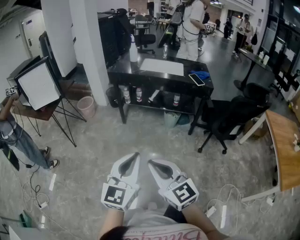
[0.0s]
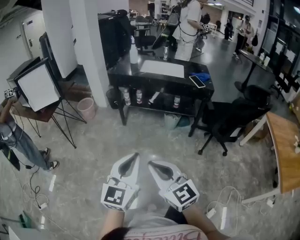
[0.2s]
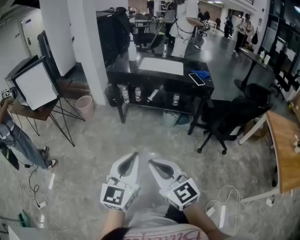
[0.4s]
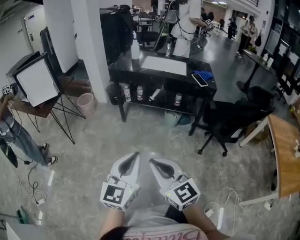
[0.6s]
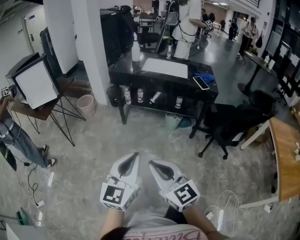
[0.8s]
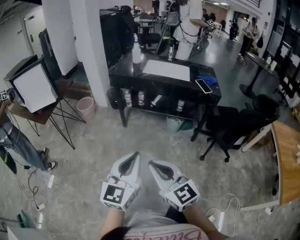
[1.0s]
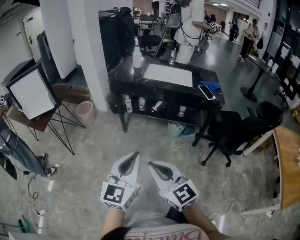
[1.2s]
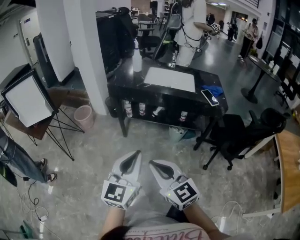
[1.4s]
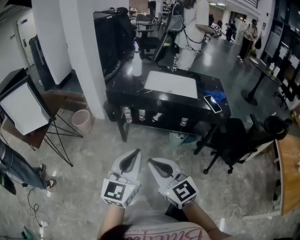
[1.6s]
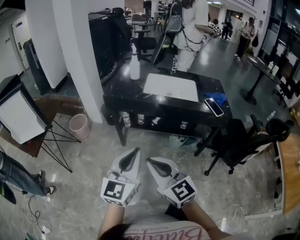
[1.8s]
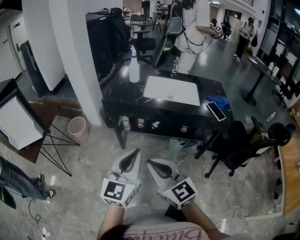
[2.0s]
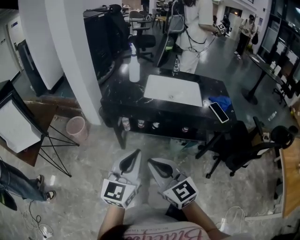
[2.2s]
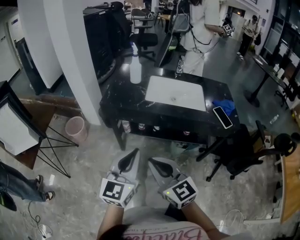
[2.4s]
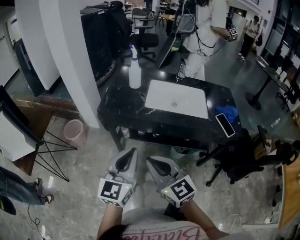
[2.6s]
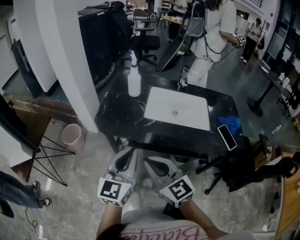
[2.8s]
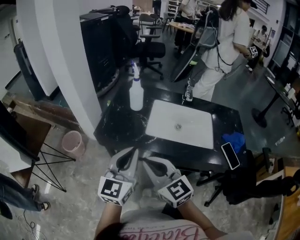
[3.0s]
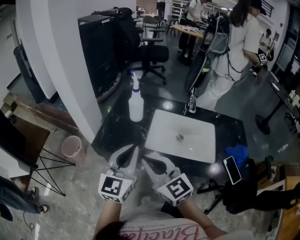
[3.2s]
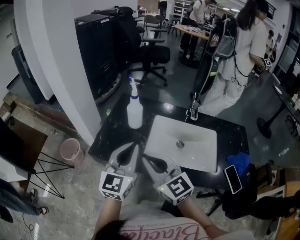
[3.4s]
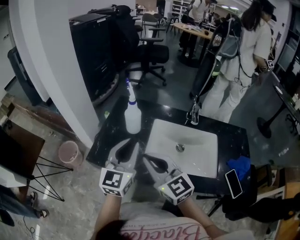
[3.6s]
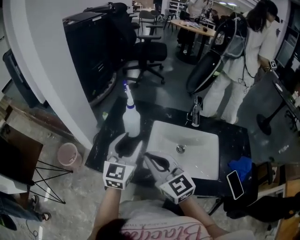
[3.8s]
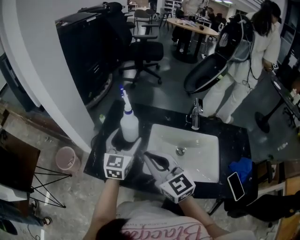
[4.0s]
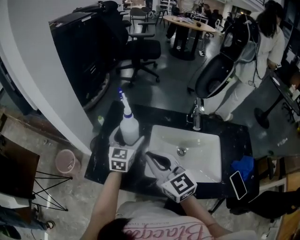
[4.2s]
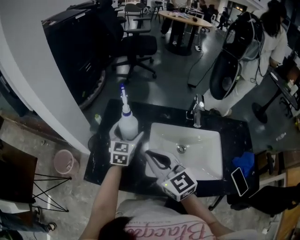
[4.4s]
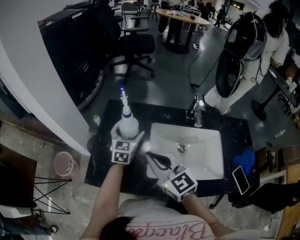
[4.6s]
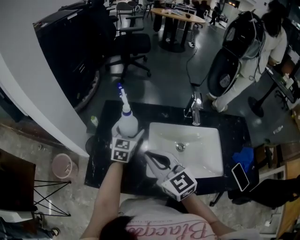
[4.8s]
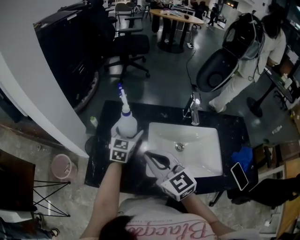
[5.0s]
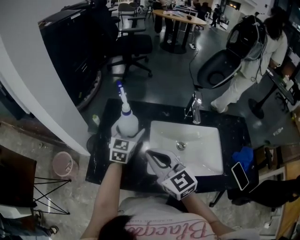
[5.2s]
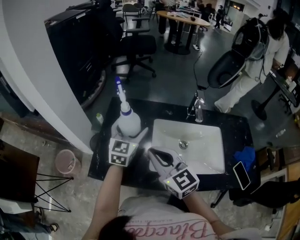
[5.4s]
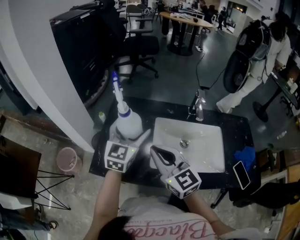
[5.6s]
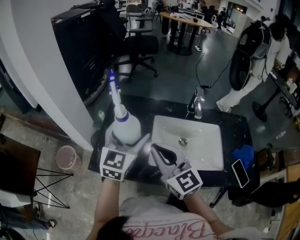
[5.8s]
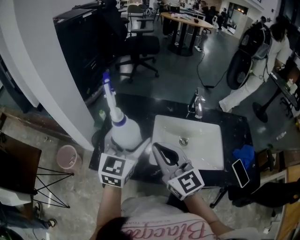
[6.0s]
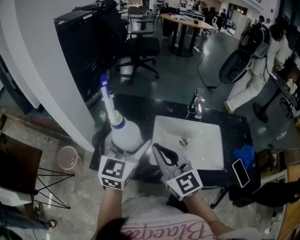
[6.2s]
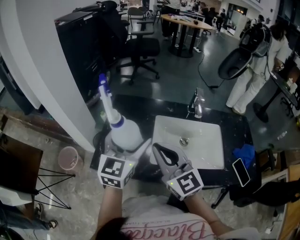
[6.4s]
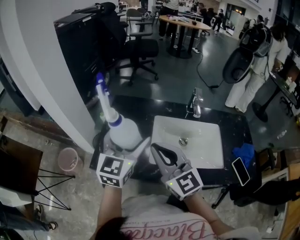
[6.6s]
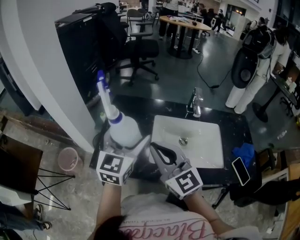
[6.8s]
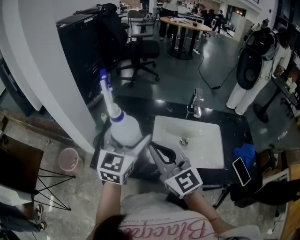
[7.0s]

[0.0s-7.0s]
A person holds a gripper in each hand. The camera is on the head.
0.0s to 1.4s: Both grippers move forward, about 20 cm.
1.4s to 2.8s: Both grippers travel together forward, about 35 cm.
2.8s to 4.2s: The grippers both shift forward by some 35 cm. The left gripper opens its fingers.
4.2s to 5.6s: The left gripper travels upward by roughly 10 cm.
5.6s to 7.0s: The left gripper shifts about 5 cm backward; the right gripper ends up roughly 5 cm from where it was.

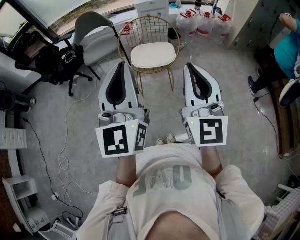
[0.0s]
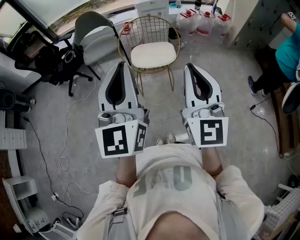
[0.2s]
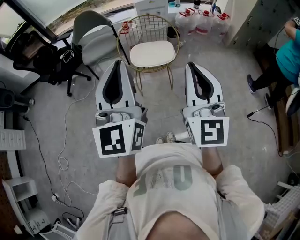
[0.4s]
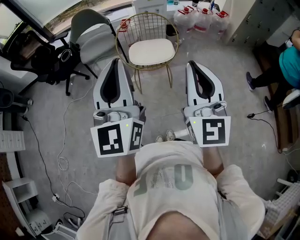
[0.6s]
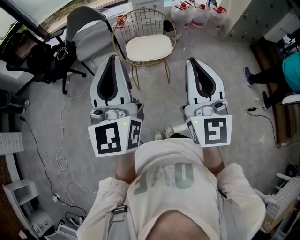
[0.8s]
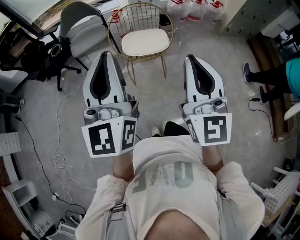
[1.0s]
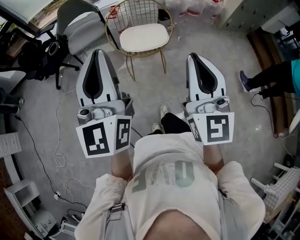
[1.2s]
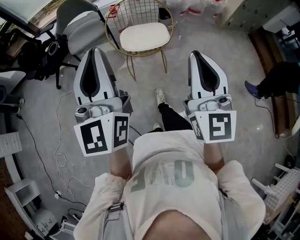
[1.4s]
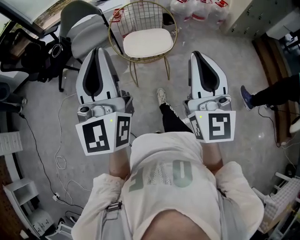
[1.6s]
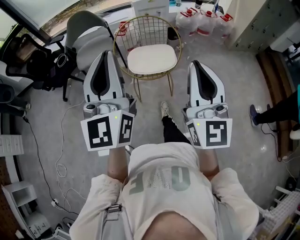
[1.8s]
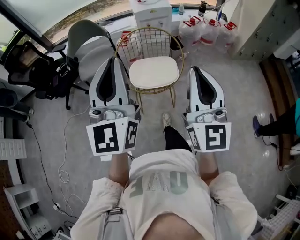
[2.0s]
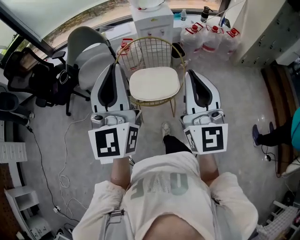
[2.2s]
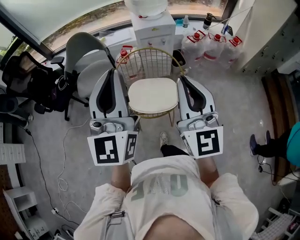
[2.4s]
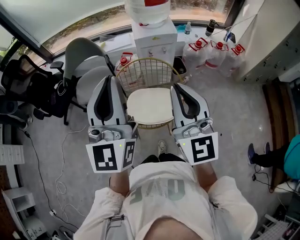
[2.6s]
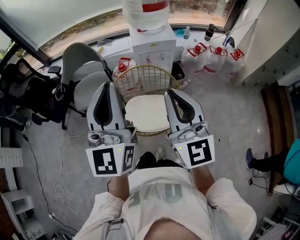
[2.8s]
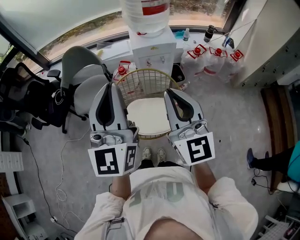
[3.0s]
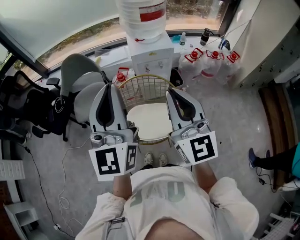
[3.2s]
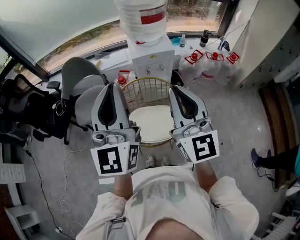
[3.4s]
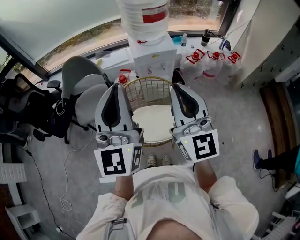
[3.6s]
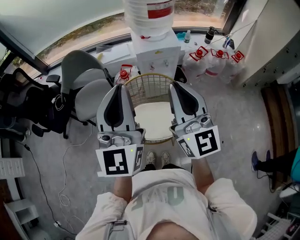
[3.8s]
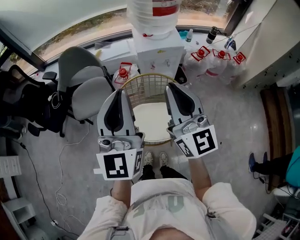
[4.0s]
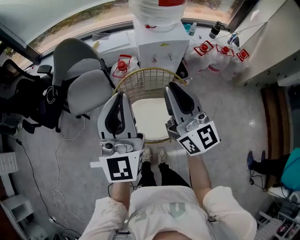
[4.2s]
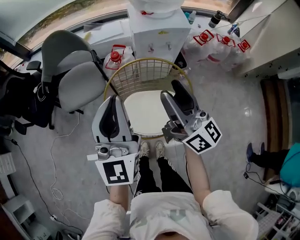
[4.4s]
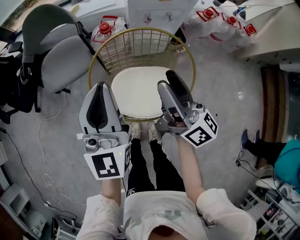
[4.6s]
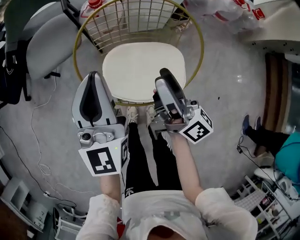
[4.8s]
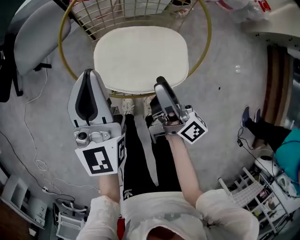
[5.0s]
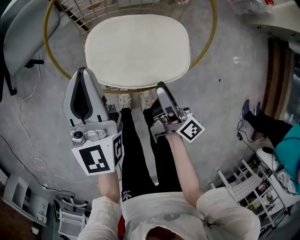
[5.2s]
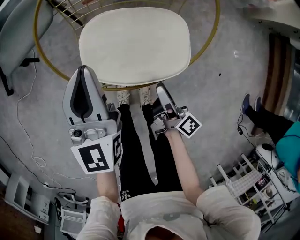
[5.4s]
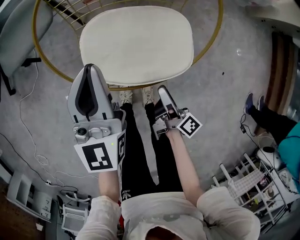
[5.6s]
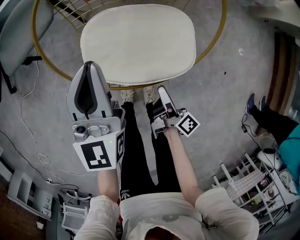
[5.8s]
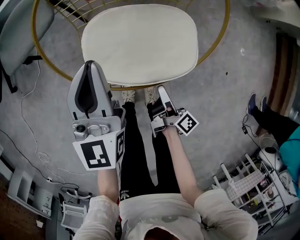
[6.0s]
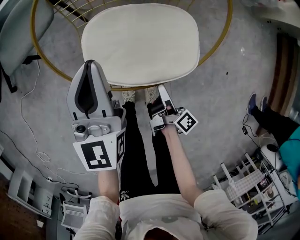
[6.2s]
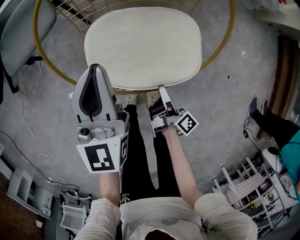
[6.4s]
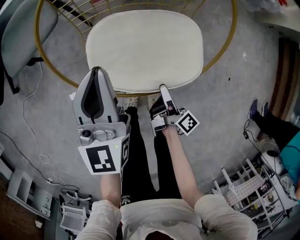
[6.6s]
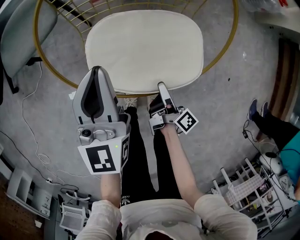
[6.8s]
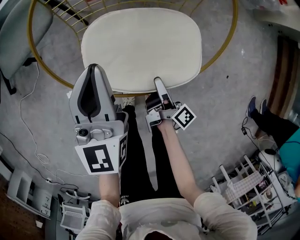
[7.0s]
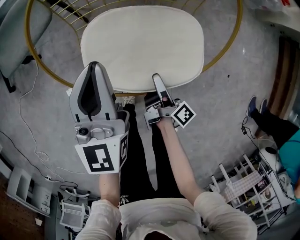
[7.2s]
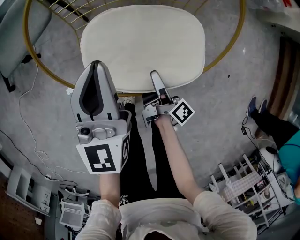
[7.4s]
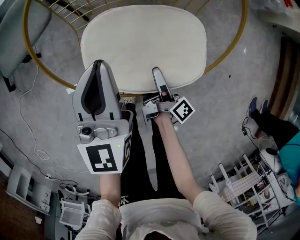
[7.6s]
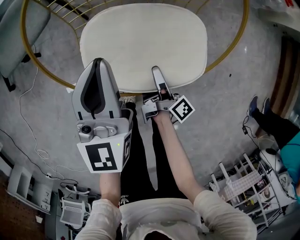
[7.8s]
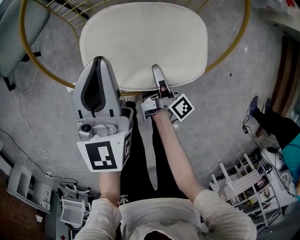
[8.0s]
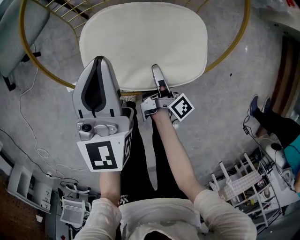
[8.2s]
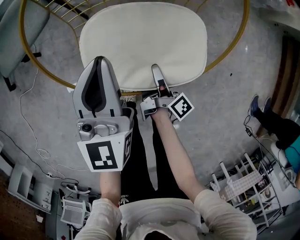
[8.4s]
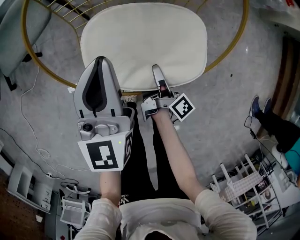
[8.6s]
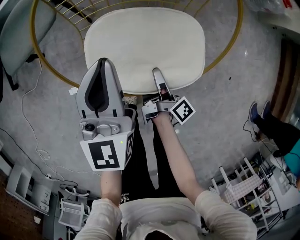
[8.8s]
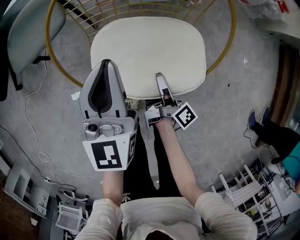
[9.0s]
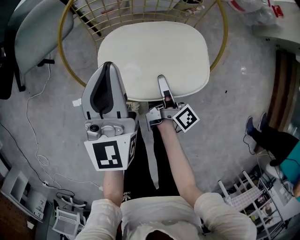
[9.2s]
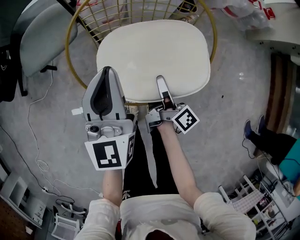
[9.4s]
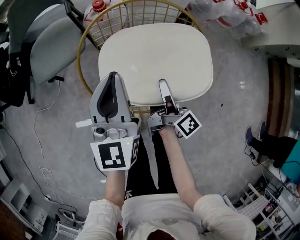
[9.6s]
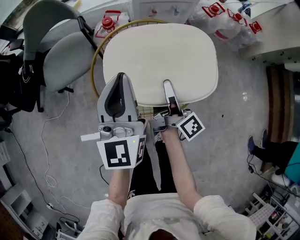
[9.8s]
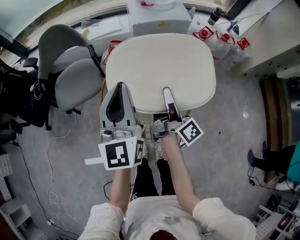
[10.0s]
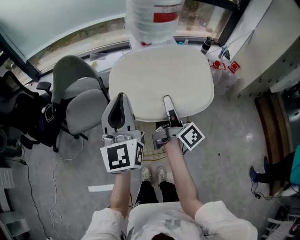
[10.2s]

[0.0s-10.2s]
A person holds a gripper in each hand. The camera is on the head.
0.0s to 1.4s: The left gripper shifts some 5 cm to the left.
1.4s to 3.0s: Both grippers are carried forward, approximately 40 cm.
3.0s to 4.4s: Both grippers move downward and forward, roughly 20 cm. The right gripper swivels approximately 40 degrees, and opens.
4.4s to 5.8s: Both grippers move downward, approximately 40 cm. The left gripper swivels approximately 20 degrees, while the right gripper rolls clockwise, seen from behind, by roughly 50 degrees.
5.8s to 7.2s: The right gripper moves forward, approximately 5 cm.
7.2s to 8.8s: The right gripper closes.
8.8s to 10.2s: The two grippers go approximately 40 cm upward. The right gripper points its fingers some 30 degrees further upward, while the left gripper rotates some 20 degrees.

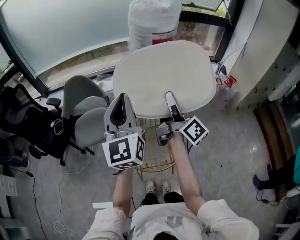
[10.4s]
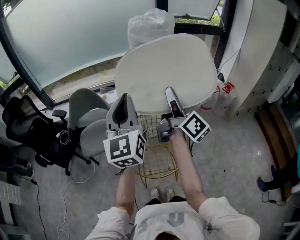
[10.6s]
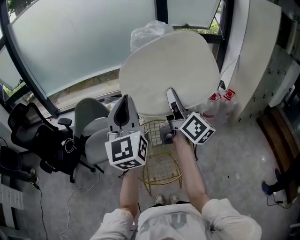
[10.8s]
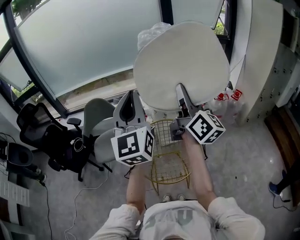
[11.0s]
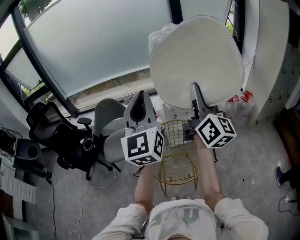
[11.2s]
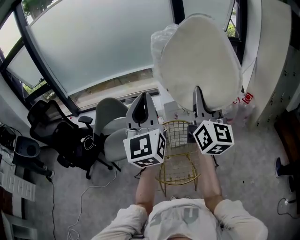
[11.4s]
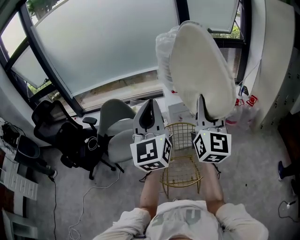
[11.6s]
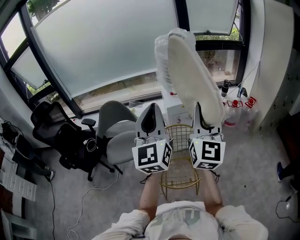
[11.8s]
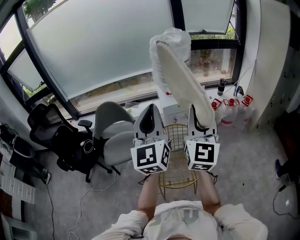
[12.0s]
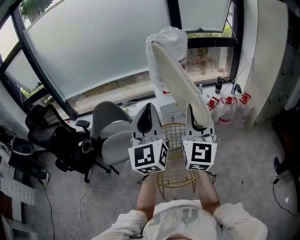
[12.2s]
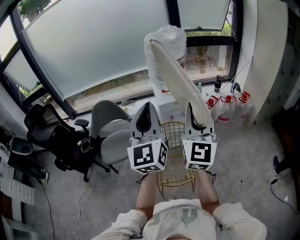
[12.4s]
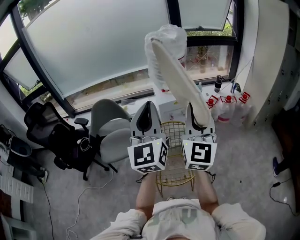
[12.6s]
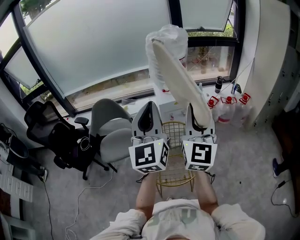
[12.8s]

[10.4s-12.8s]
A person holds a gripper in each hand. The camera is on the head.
10.4s to 11.6s: The right gripper heads upward and backward, covering approximately 20 cm, and rolls counterclockwise, seen from behind, by about 60 degrees, while the left gripper moves upward and backward, approximately 10 cm.
11.6s to 12.8s: The grippers stay close to where they were, moving slightly.

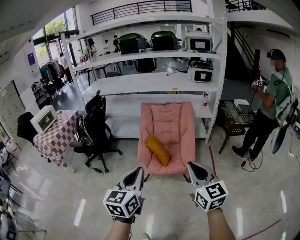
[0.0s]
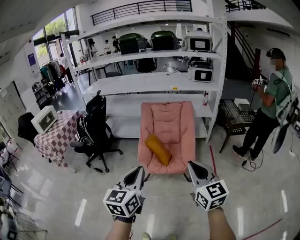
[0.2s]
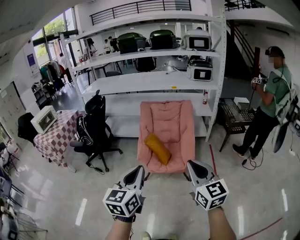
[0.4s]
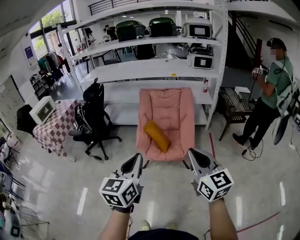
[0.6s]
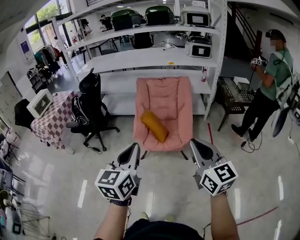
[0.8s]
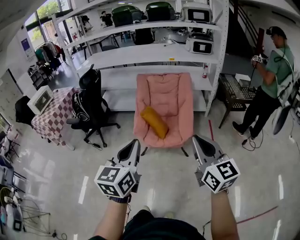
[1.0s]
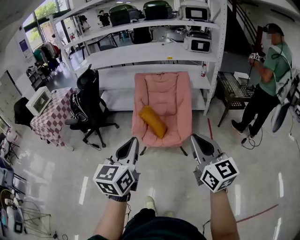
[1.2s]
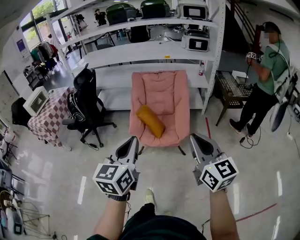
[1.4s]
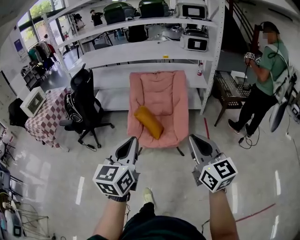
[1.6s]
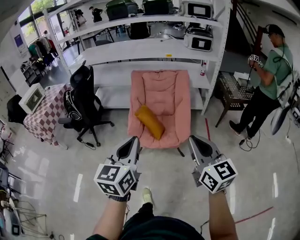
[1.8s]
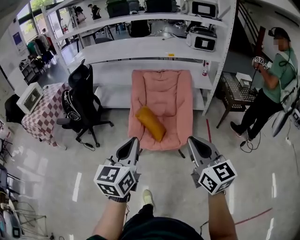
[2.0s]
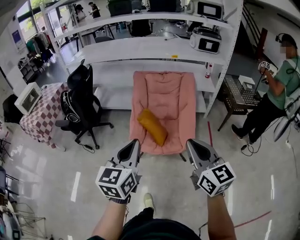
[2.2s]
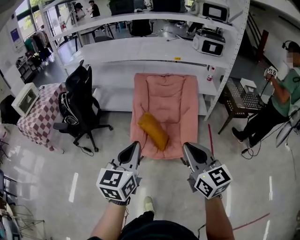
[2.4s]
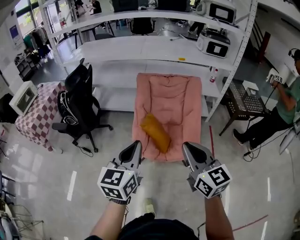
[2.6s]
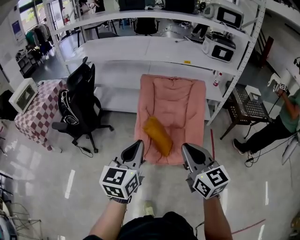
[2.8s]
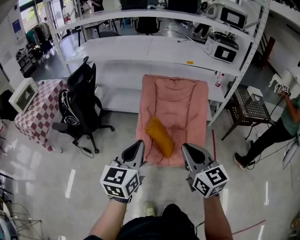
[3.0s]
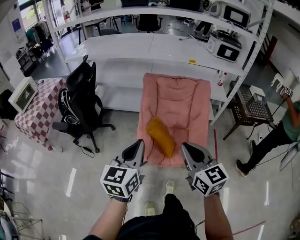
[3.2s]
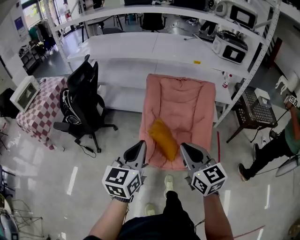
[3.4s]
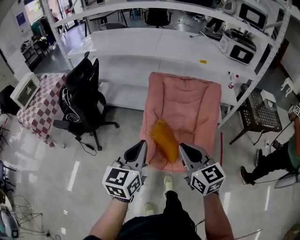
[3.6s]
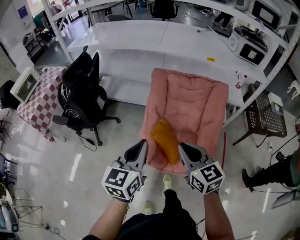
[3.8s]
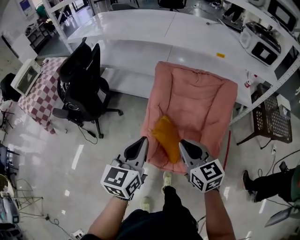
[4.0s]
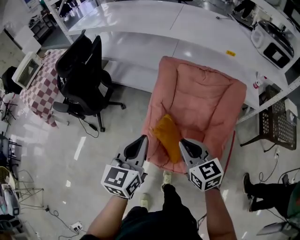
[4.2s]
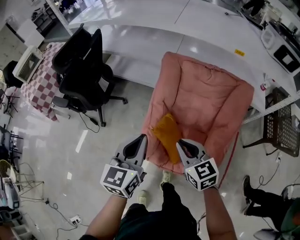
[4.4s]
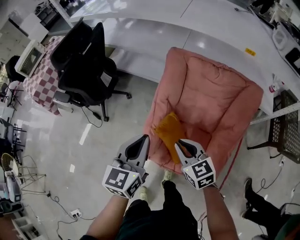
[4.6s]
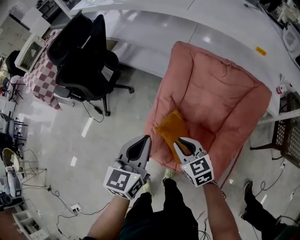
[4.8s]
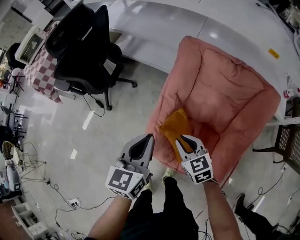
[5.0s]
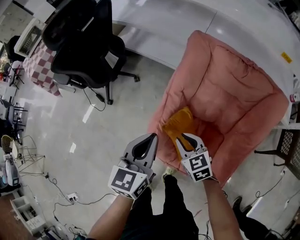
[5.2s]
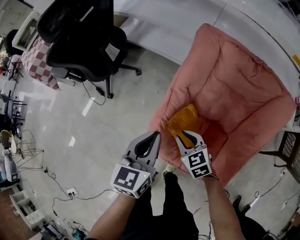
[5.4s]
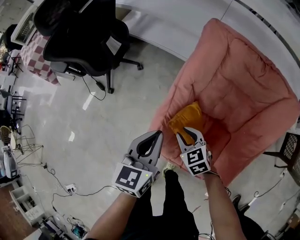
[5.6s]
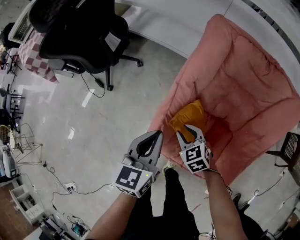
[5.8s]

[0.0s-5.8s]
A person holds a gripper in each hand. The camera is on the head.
0.0s to 1.4s: The two grippers go roughly 5 cm to the right.
1.4s to 2.8s: Both grippers move forward and to the left, about 30 cm.
2.8s to 4.4s: Both grippers move forward and downward, about 35 cm. The right gripper rotates roughly 30 degrees.
4.4s to 5.8s: Both grippers travel together downward, some 25 cm. The right gripper turns by about 30 degrees, and opens.
